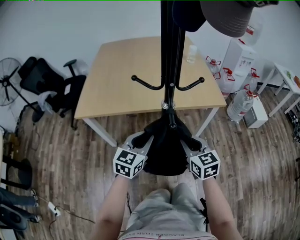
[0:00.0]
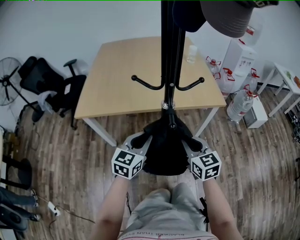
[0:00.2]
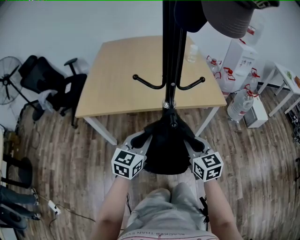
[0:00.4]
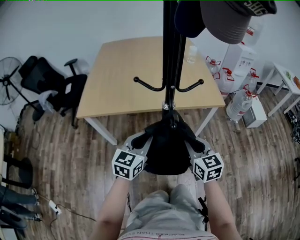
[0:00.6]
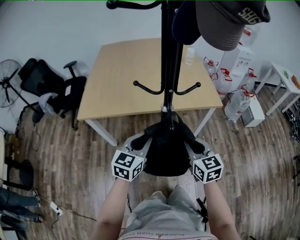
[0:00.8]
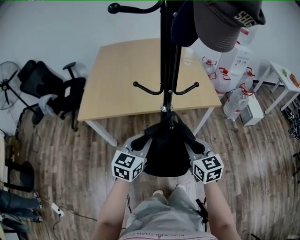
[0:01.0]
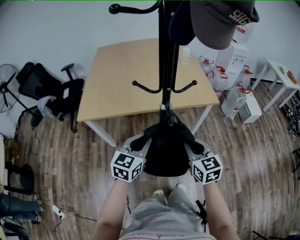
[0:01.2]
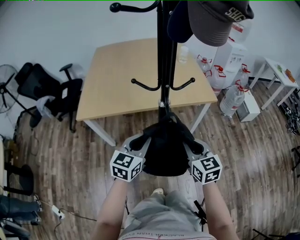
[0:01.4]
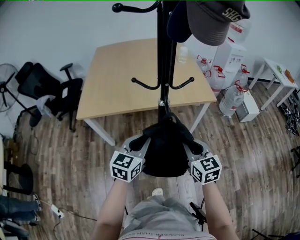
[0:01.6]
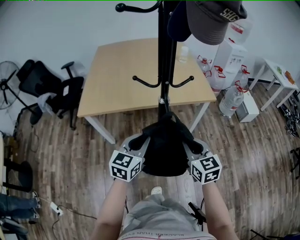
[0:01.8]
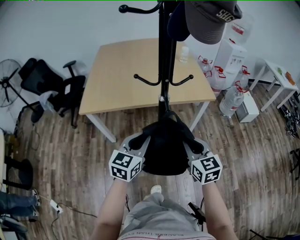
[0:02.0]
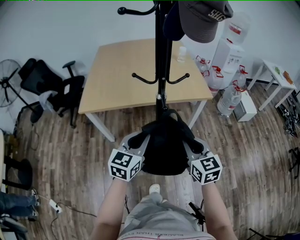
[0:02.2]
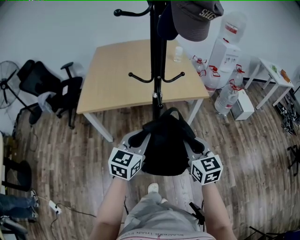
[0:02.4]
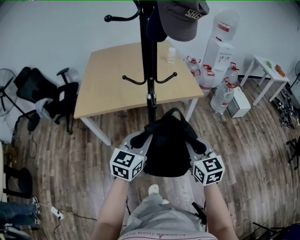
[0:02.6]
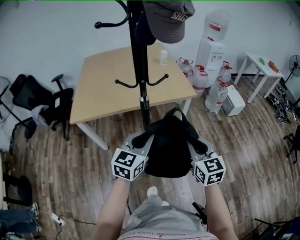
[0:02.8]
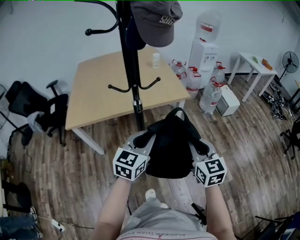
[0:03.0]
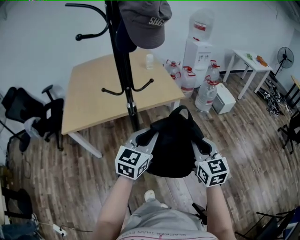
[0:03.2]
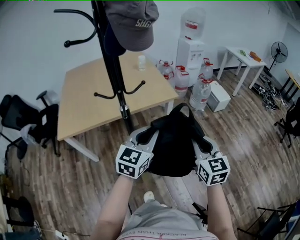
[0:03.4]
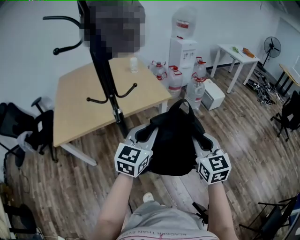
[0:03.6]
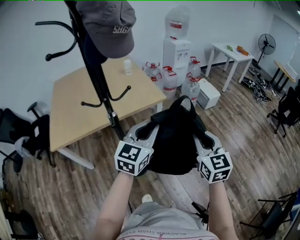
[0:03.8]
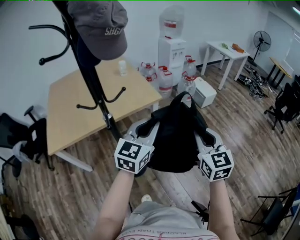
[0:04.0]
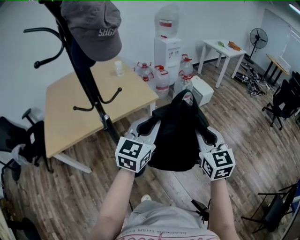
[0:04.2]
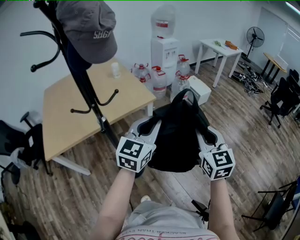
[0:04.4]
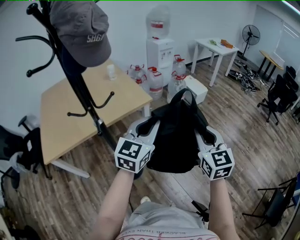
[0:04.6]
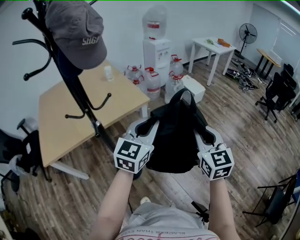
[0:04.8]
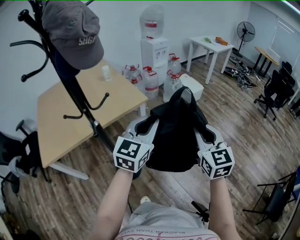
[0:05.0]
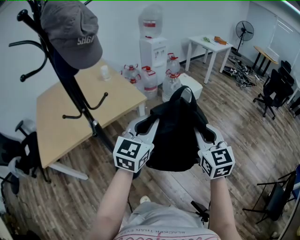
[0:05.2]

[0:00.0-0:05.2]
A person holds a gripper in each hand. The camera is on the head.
0:00.0 to 0:01.8: The grippers both shift backward and upward by some 10 cm.
0:01.8 to 0:03.4: The two grippers go about 20 cm to the right and upward. The right gripper turns by about 20 degrees.
0:03.4 to 0:05.2: Both grippers move to the right and upward, some 15 cm.

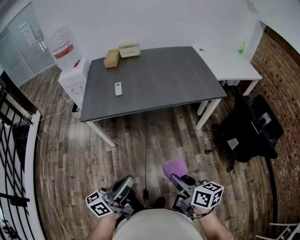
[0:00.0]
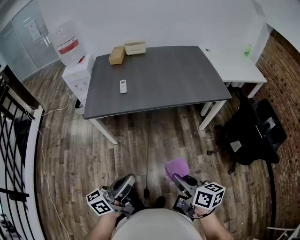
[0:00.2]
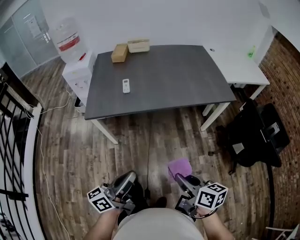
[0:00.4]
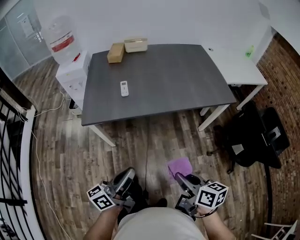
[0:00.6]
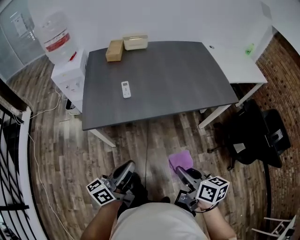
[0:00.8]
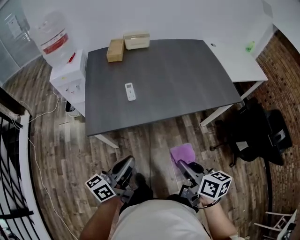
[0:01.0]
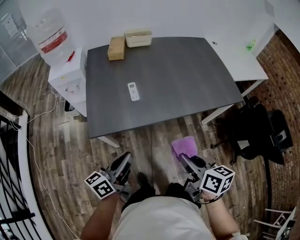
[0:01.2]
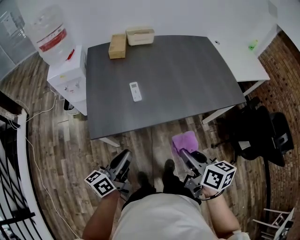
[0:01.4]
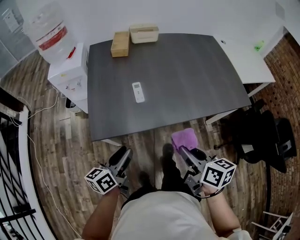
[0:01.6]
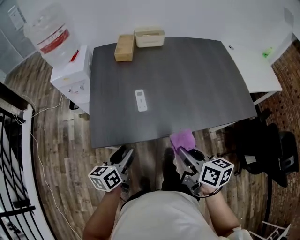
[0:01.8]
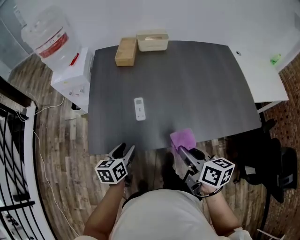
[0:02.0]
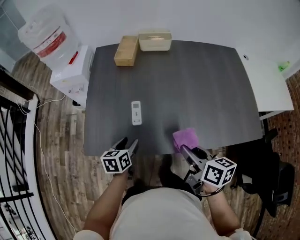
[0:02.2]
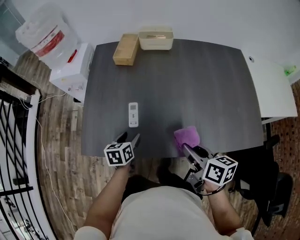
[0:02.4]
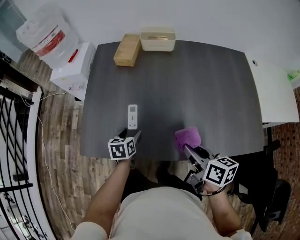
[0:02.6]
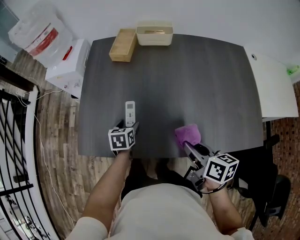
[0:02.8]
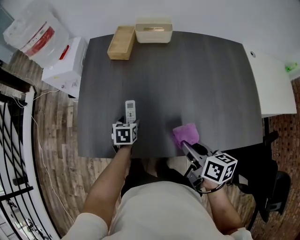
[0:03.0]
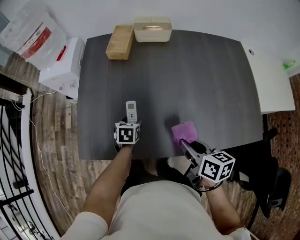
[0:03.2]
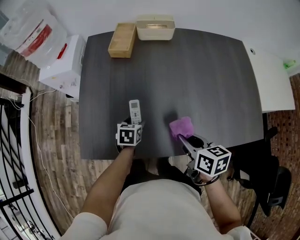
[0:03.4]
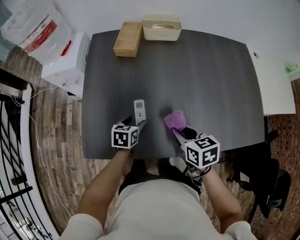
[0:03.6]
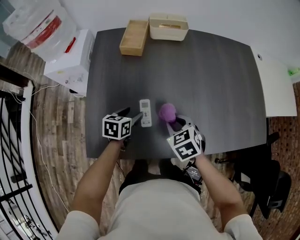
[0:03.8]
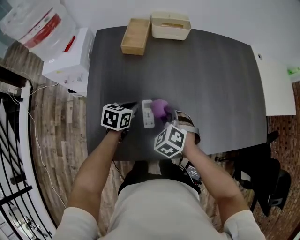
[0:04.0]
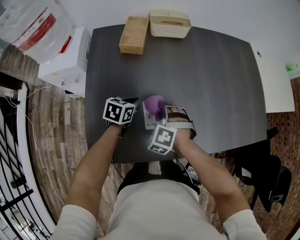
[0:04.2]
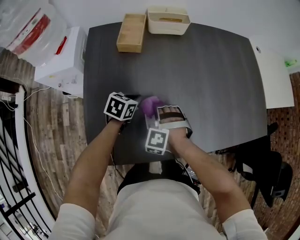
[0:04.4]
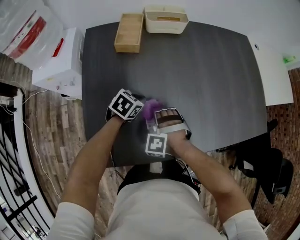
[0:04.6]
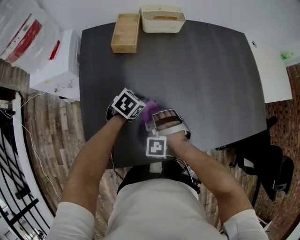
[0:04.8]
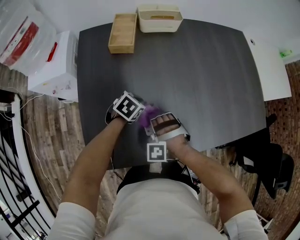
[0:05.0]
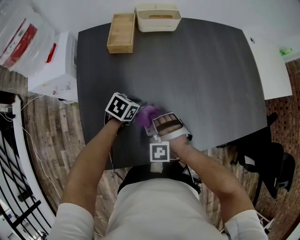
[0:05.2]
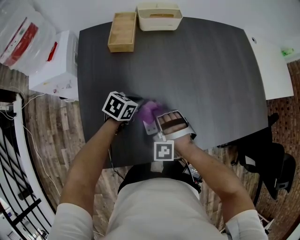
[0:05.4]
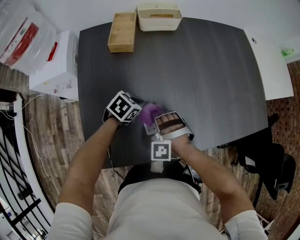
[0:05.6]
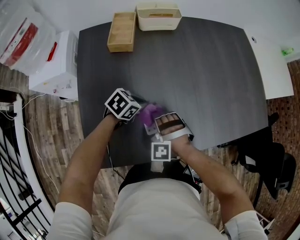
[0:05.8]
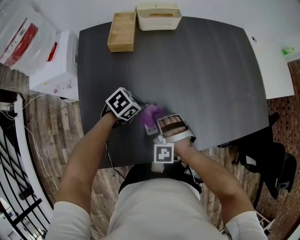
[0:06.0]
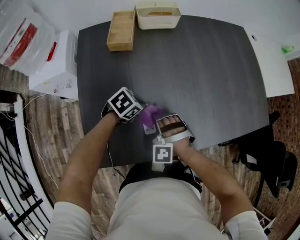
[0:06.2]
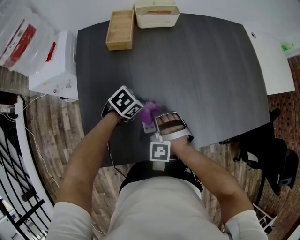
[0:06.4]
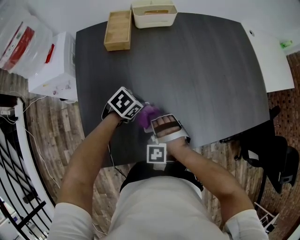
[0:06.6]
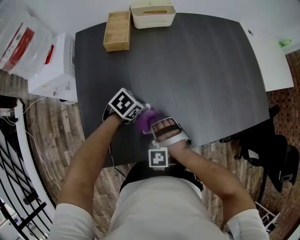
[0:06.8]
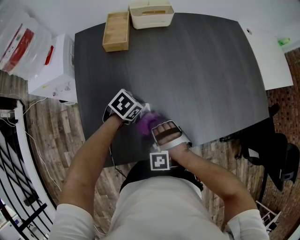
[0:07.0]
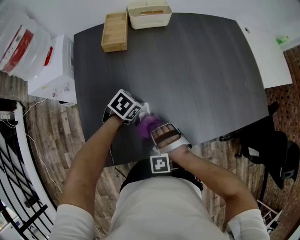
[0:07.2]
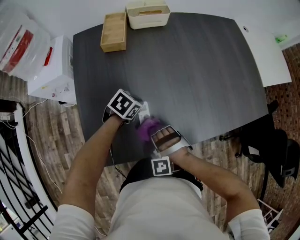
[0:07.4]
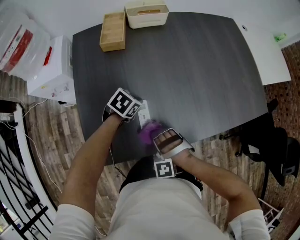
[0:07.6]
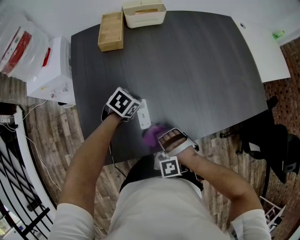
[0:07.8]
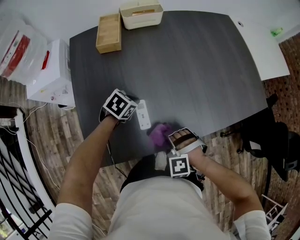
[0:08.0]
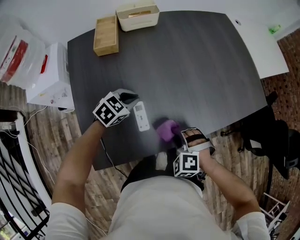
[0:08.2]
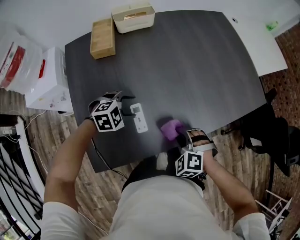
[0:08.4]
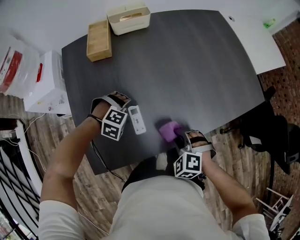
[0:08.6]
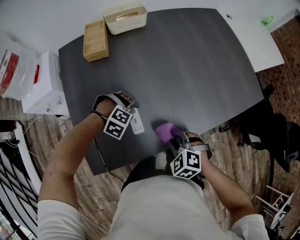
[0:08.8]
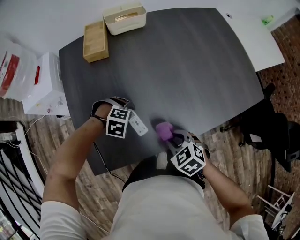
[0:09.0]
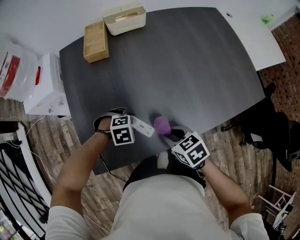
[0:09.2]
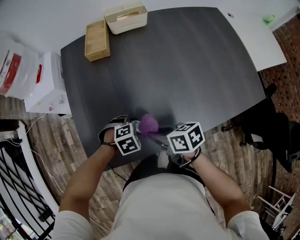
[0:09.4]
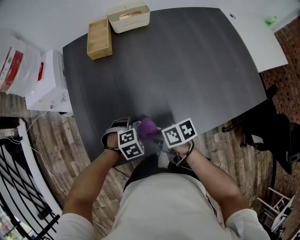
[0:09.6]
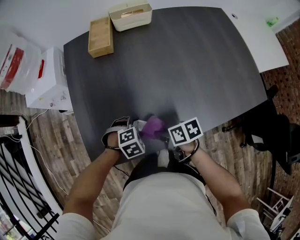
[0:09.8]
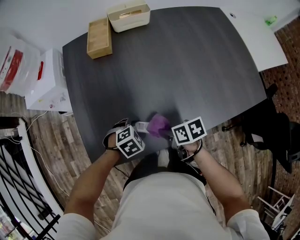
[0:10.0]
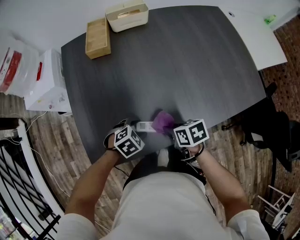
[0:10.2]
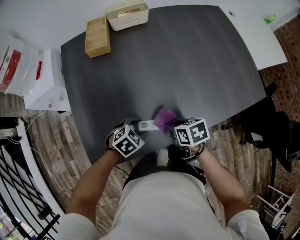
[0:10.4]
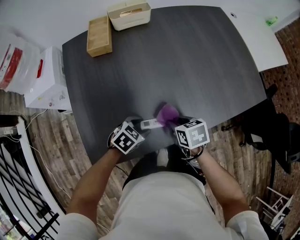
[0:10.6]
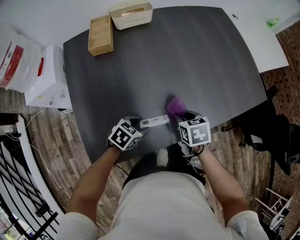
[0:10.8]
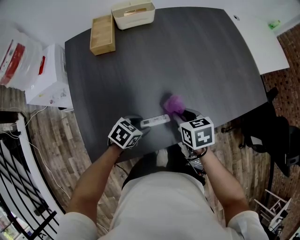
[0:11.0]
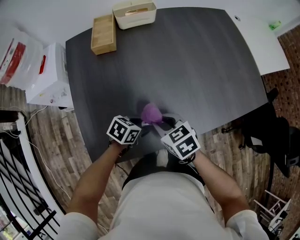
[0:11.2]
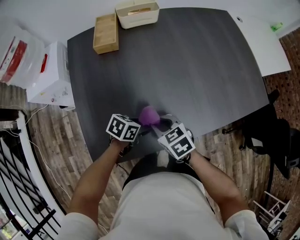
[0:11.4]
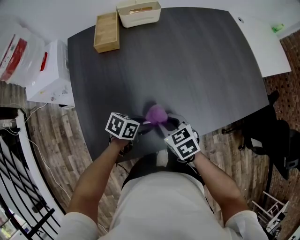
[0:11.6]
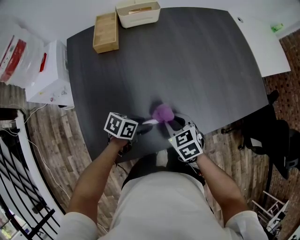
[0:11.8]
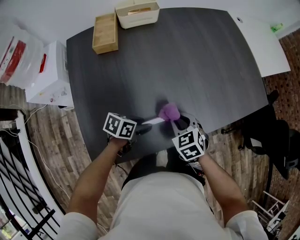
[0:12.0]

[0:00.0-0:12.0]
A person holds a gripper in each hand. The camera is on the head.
0:00.0 to 0:01.6: Both grippers travel together forward and to the left, approximately 35 cm. The left gripper turns by roughly 20 degrees.
0:01.6 to 0:03.0: The right gripper goes about 25 cm forward and to the right, while the left gripper shifts roughly 35 cm forward, downward and to the right, angles its fingers downward, by approximately 40 degrees, and opens.
0:03.0 to 0:04.4: The right gripper changes place by some 30 cm, and rolls counterclockwise, seen from behind, by some 100 degrees, while the left gripper shifts by some 10 cm, rotates roughly 30 degrees, and closes.
0:04.4 to 0:06.0: The left gripper goes roughly 5 cm to the right, and turns by approximately 30 degrees.
0:06.0 to 0:07.6: The right gripper heads backward and to the right, covering roughly 10 cm.
0:07.6 to 0:09.0: The right gripper ends up about 10 cm from where it was, and rotates around the line of its fingers by roughly 80 degrees, clockwise from behind, while the left gripper ends up about 5 cm from where it was, twists some 70 degrees clockwise, seen from behind, and opens up.
0:09.0 to 0:10.4: The left gripper moves some 5 cm, and rotates around the line of its fingers by some 50 degrees, counterclockwise from behind. Meanwhile the right gripper rotates about 40 degrees.
0:10.4 to 0:12.0: The right gripper swivels about 40 degrees. The left gripper rotates around the line of its fingers by roughly 40 degrees, counterclockwise from behind.

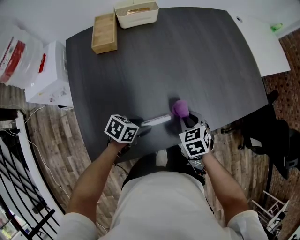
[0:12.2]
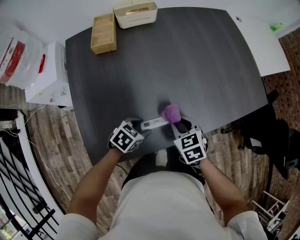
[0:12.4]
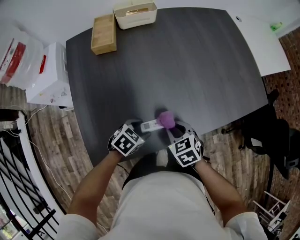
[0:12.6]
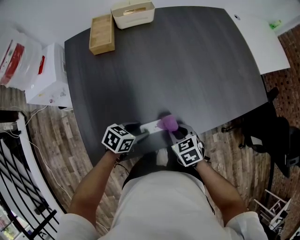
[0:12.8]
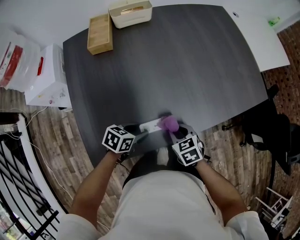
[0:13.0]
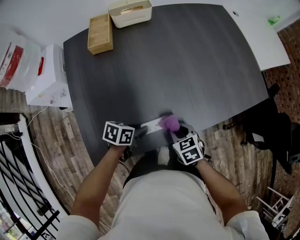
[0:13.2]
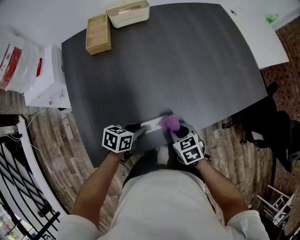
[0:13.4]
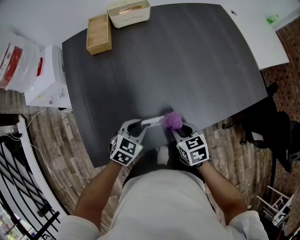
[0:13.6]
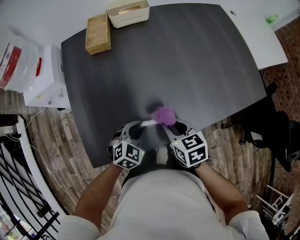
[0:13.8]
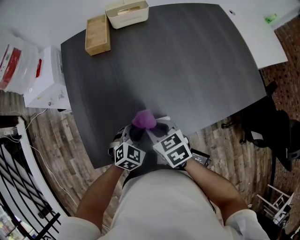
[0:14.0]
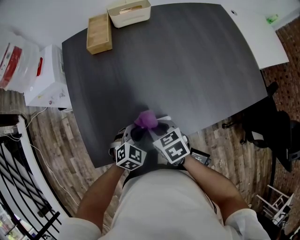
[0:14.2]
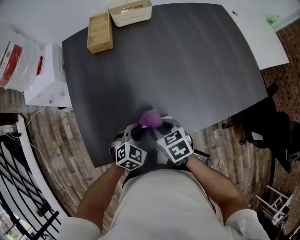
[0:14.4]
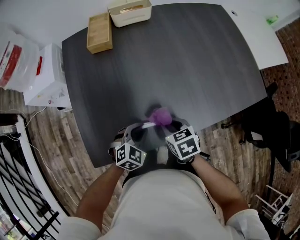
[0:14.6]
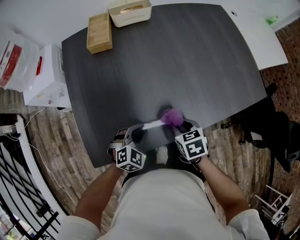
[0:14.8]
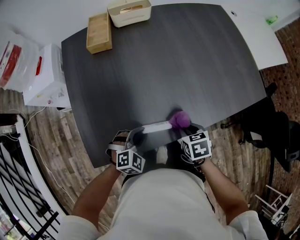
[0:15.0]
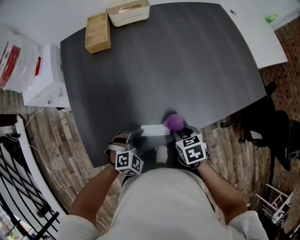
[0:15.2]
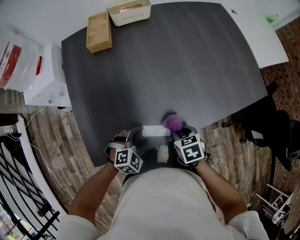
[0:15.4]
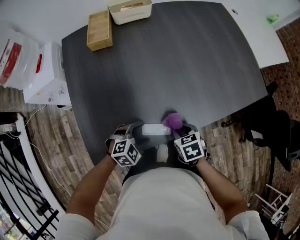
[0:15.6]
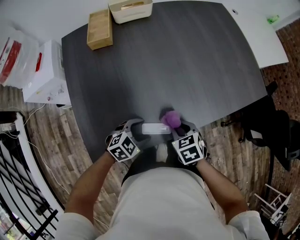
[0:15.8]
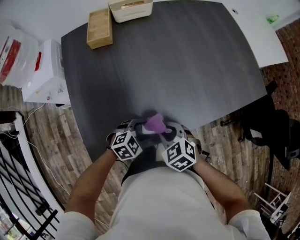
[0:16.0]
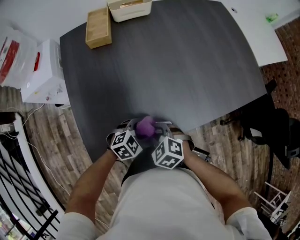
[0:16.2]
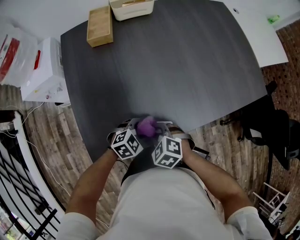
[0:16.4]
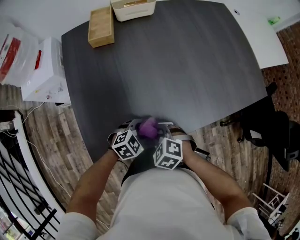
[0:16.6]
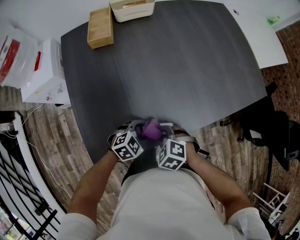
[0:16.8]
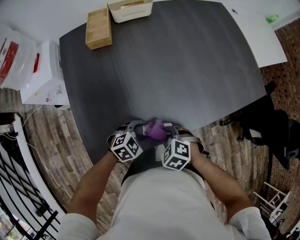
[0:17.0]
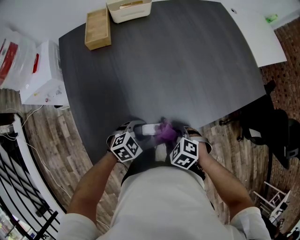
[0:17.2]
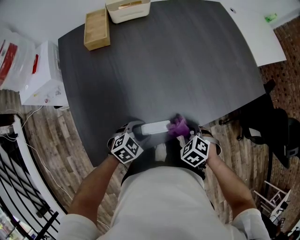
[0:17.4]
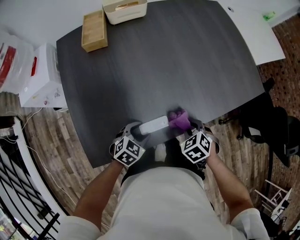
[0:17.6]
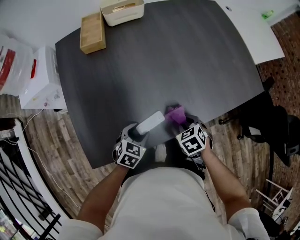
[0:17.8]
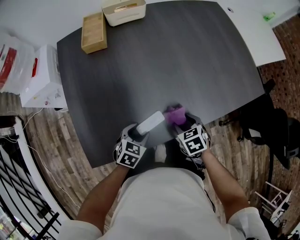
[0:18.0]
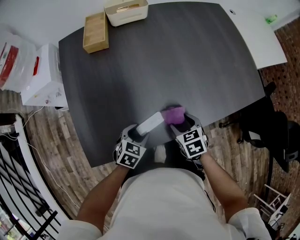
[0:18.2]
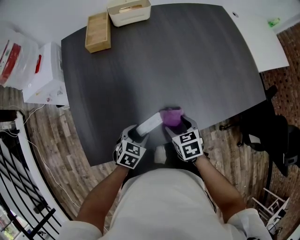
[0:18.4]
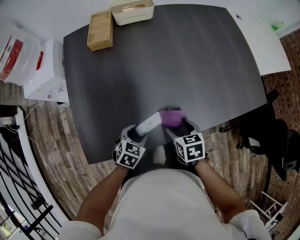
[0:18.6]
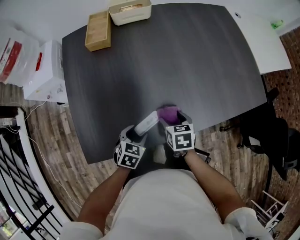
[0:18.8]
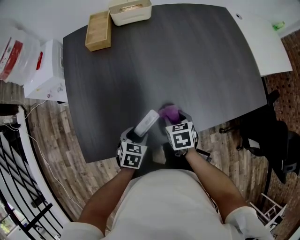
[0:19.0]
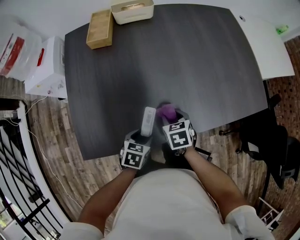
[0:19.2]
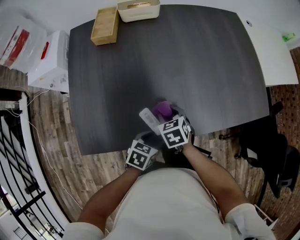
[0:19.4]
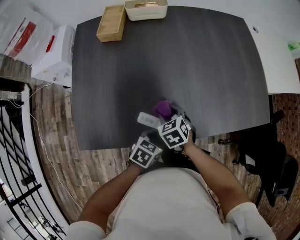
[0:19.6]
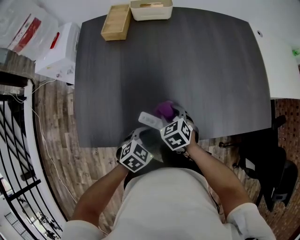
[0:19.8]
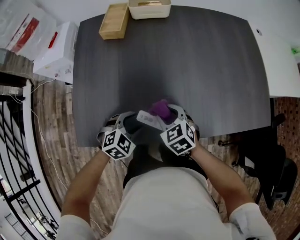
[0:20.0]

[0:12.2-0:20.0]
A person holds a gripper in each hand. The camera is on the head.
0:12.2 to 0:13.8: The right gripper ends up some 10 cm from where it was, and rotates about 30 degrees, while the left gripper turns by some 50 degrees.
0:13.8 to 0:15.4: The right gripper travels downward by some 10 cm, and reaches approximately 10 cm to the right, then returns. Meanwhile the left gripper shifts about 5 cm backward, rotates roughly 20 degrees, and opens its fingers.
0:15.4 to 0:16.8: The right gripper shifts some 10 cm to the left, and rotates around the line of its fingers by some 50 degrees, counterclockwise from behind.
0:16.8 to 0:18.4: The left gripper turns by roughly 30 degrees; the right gripper changes place by roughly 10 cm, twists roughly 40 degrees clockwise, seen from behind, and opens.
0:18.4 to 0:20.0: The right gripper heads to the left, covering roughly 5 cm, and changes its angle by approximately 30 degrees. The left gripper goes to the right and returns, roughly 15 cm each way, and rotates about 20 degrees.
